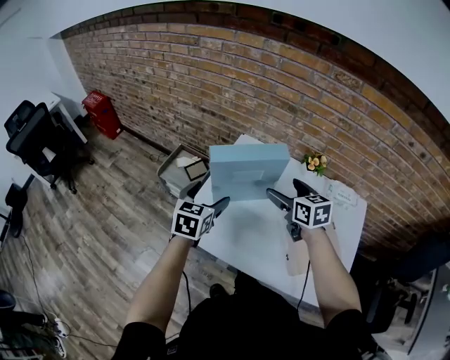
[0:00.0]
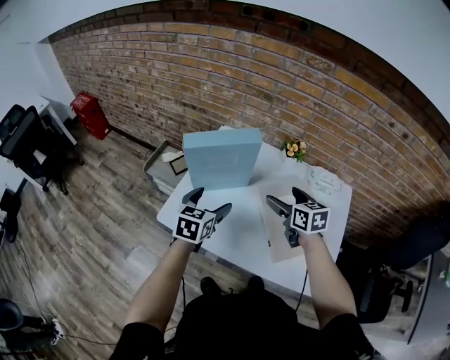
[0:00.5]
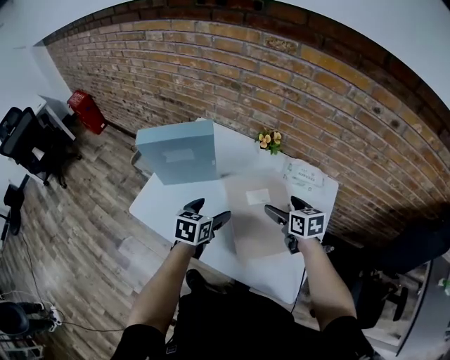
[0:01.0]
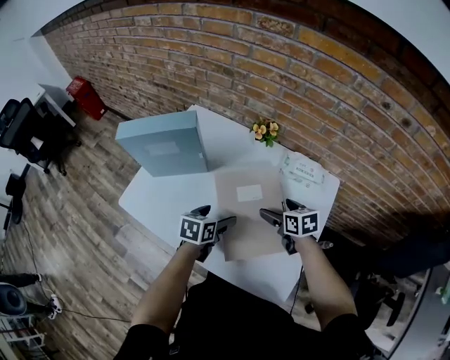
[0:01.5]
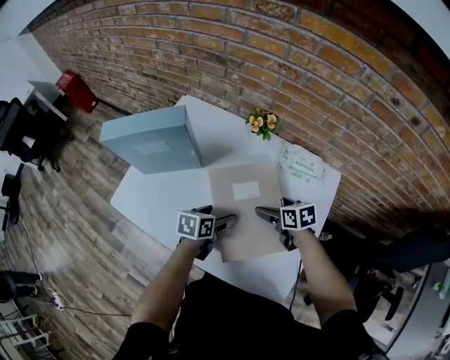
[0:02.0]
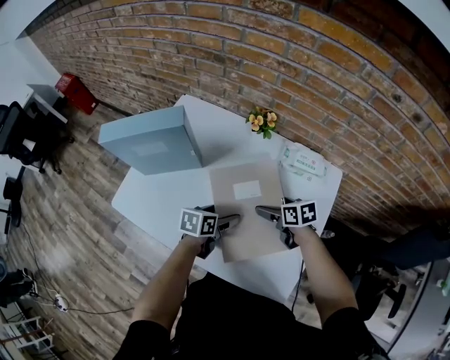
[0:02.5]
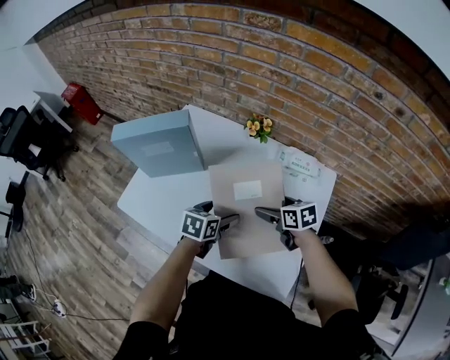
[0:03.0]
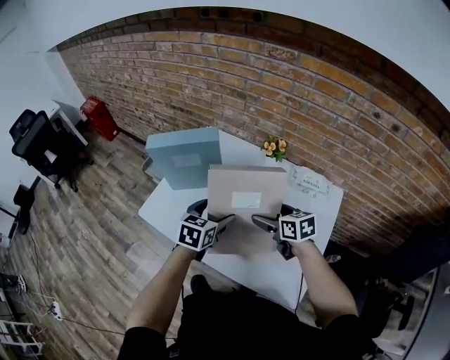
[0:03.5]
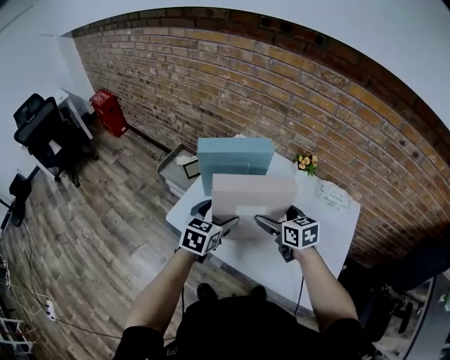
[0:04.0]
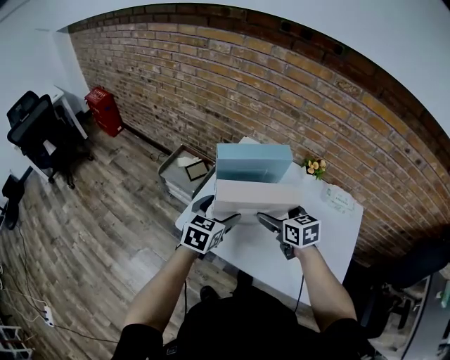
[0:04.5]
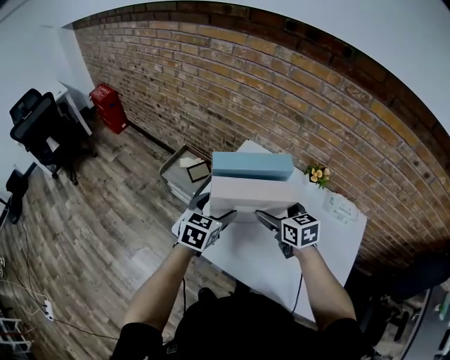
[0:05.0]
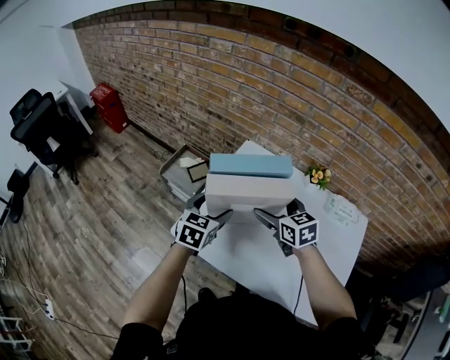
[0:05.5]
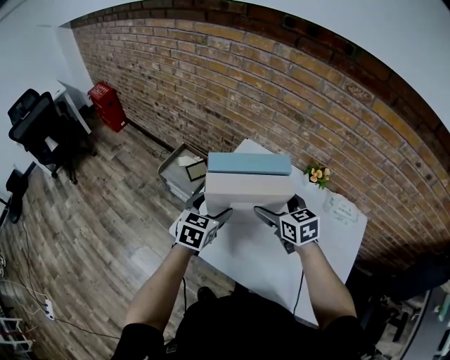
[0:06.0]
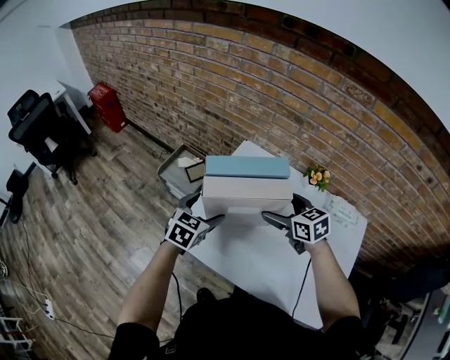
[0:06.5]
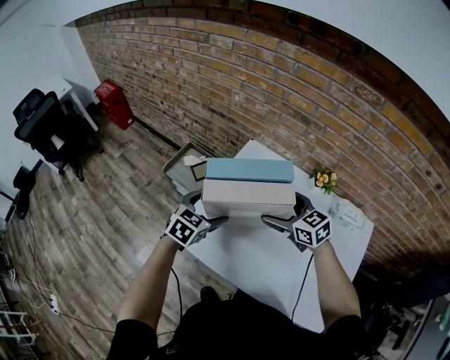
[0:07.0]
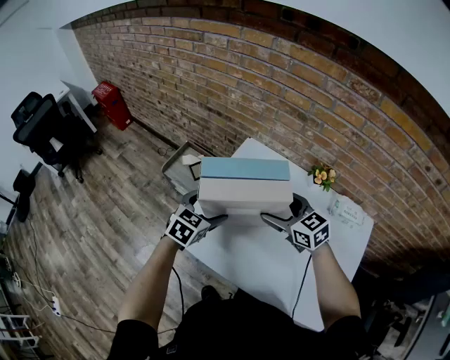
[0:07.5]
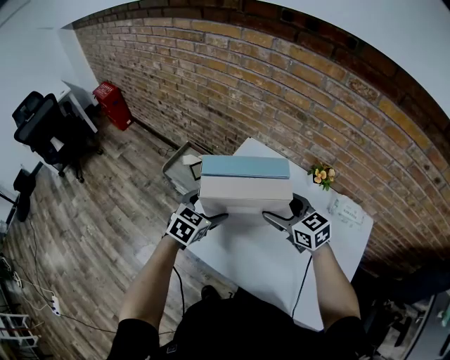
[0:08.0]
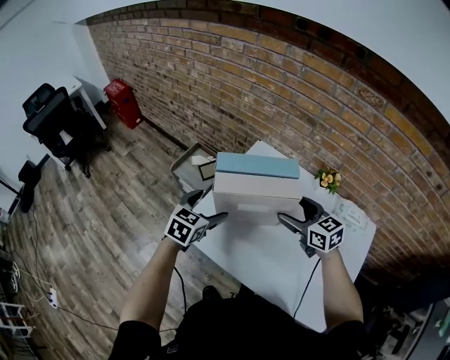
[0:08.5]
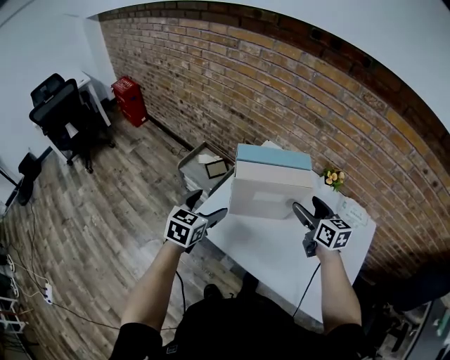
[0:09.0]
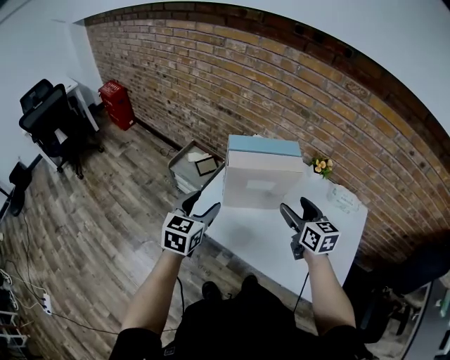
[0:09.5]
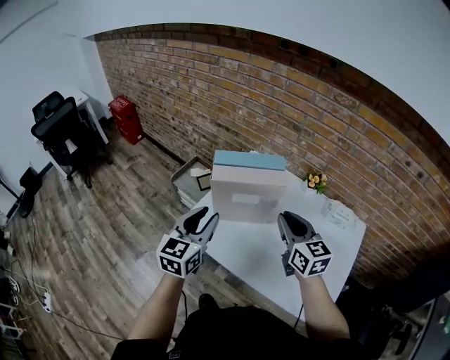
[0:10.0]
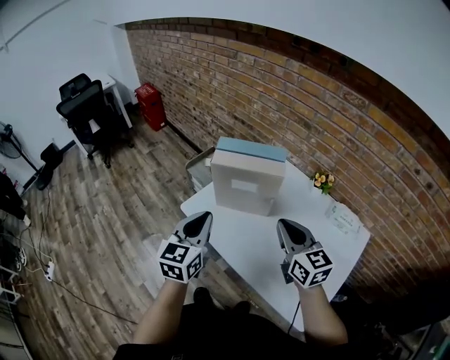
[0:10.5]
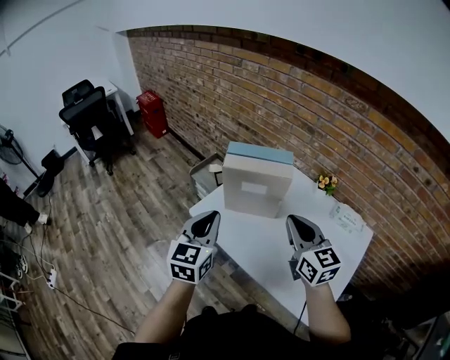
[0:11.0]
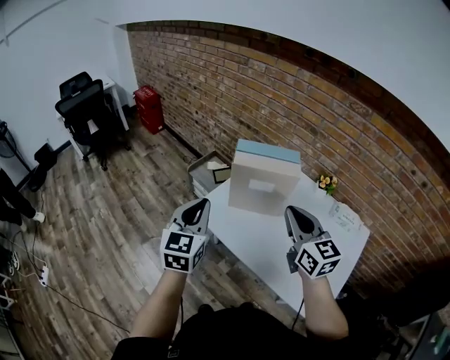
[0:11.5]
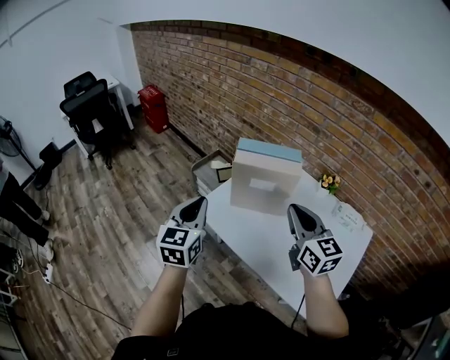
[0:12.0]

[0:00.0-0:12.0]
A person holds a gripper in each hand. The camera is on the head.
0:00.0 to 0:02.0: The grippers both shift to the right and downward by some 35 cm. The left gripper changes its angle by about 40 degrees. The right gripper rotates about 30 degrees.
0:02.0 to 0:04.0: The grippers both shift to the left and upward by some 25 cm. The right gripper rotates about 20 degrees. The left gripper swivels some 30 degrees.
0:04.0 to 0:06.0: The left gripper is displaced forward and to the left by some 10 cm. The right gripper goes roughly 10 cm forward.
0:06.0 to 0:08.0: There are only small adjustments of the grippers.
0:08.0 to 0:10.0: The left gripper heads upward and backward, covering roughly 20 cm, swivels roughly 30 degrees, and closes its fingers. Meanwhile the right gripper goes roughly 15 cm backward and upward, changes its angle by roughly 20 degrees, and closes its fingers.
0:10.0 to 0:12.0: The left gripper shifts roughly 10 cm to the left and backward; the right gripper moves upward, about 5 cm.

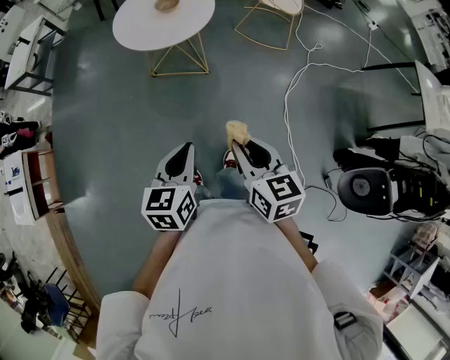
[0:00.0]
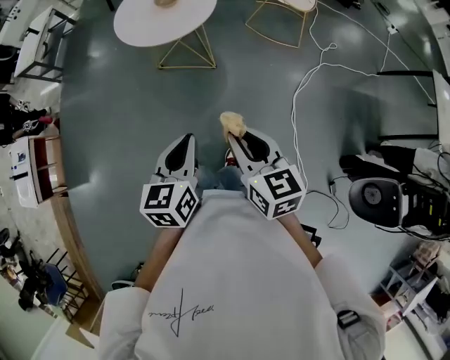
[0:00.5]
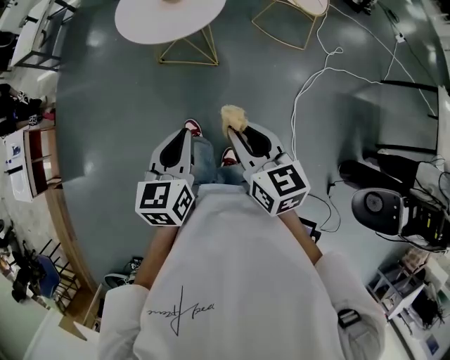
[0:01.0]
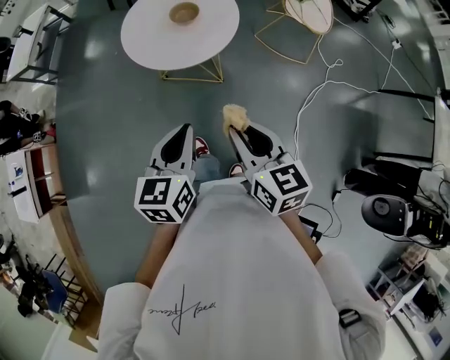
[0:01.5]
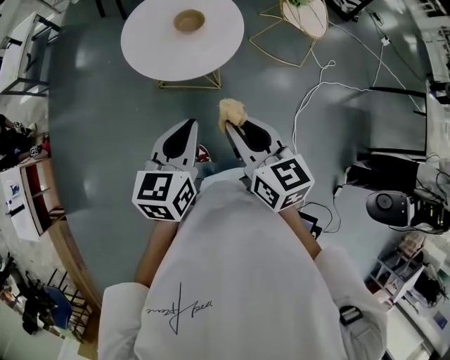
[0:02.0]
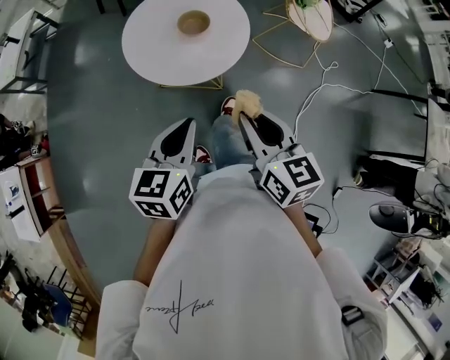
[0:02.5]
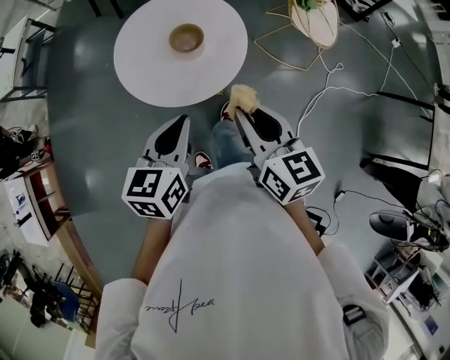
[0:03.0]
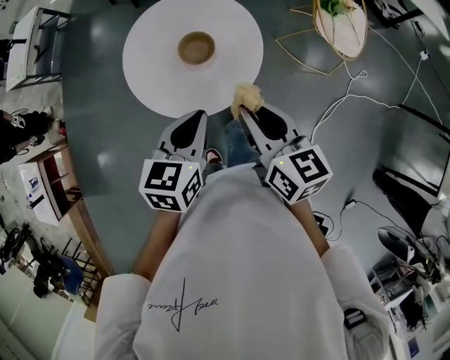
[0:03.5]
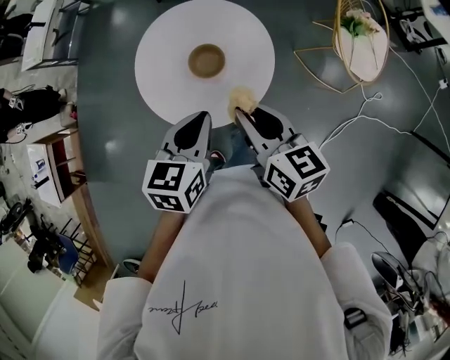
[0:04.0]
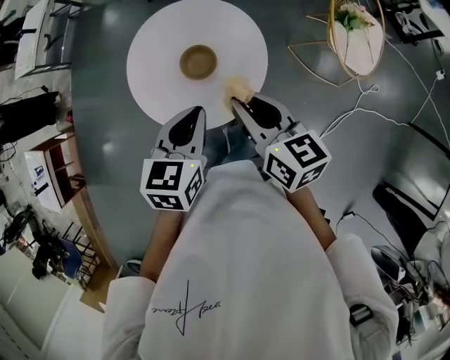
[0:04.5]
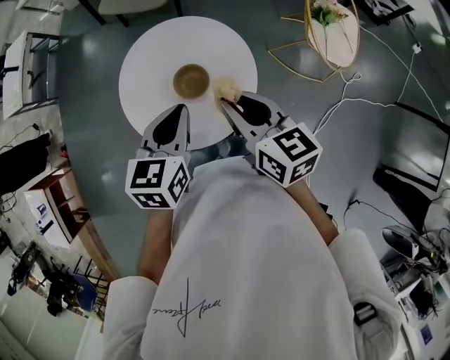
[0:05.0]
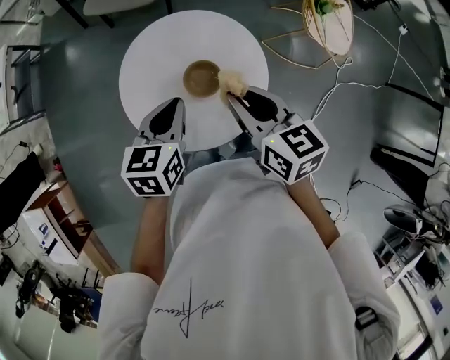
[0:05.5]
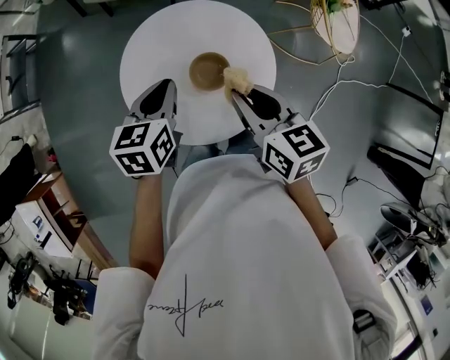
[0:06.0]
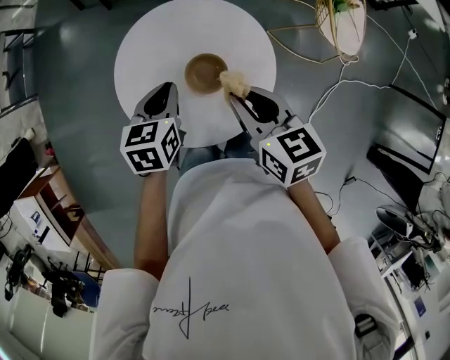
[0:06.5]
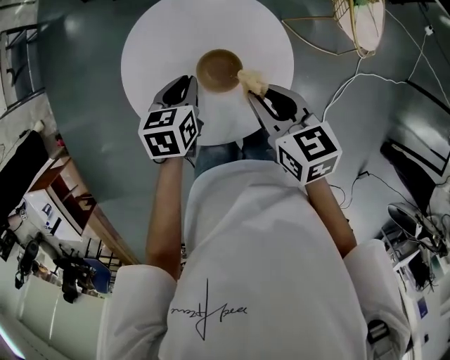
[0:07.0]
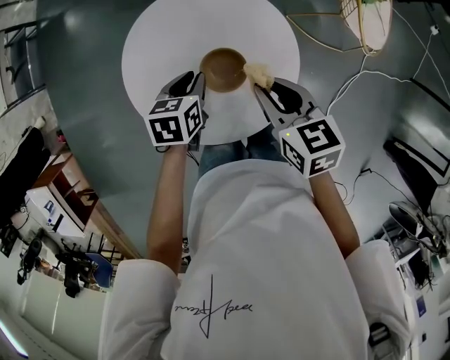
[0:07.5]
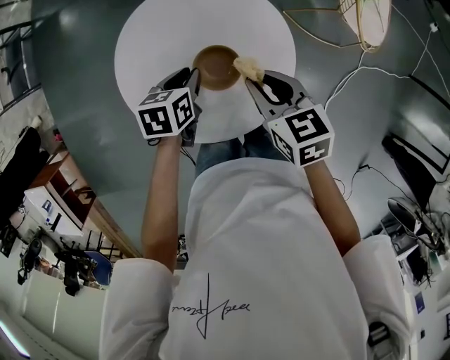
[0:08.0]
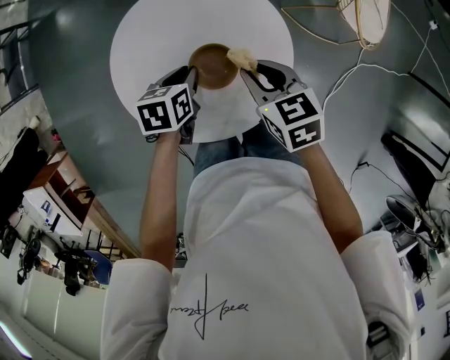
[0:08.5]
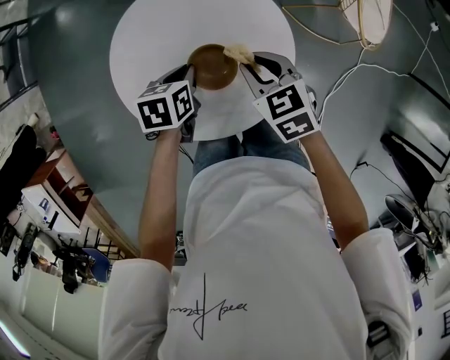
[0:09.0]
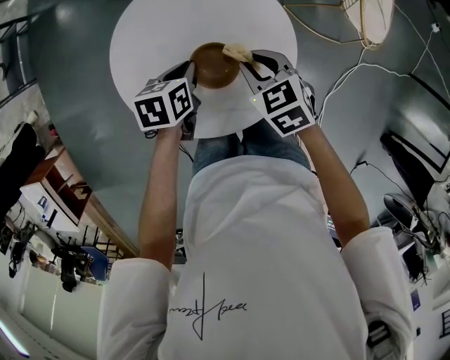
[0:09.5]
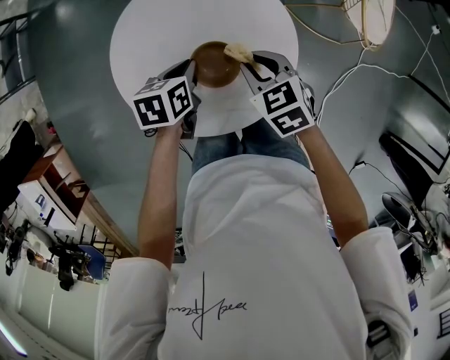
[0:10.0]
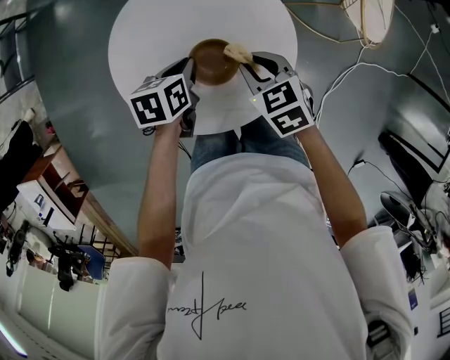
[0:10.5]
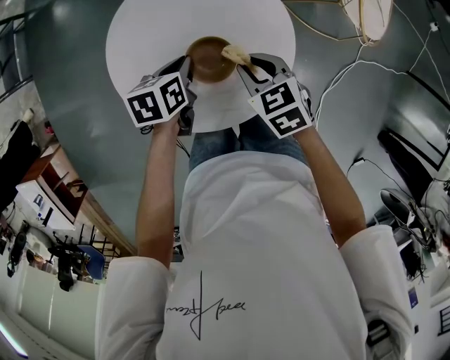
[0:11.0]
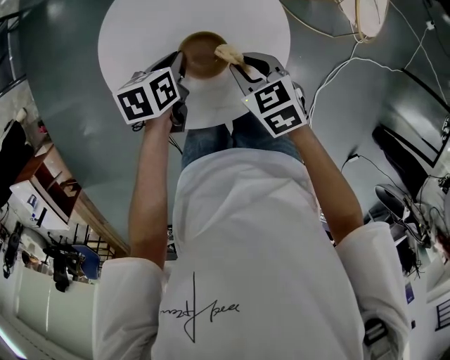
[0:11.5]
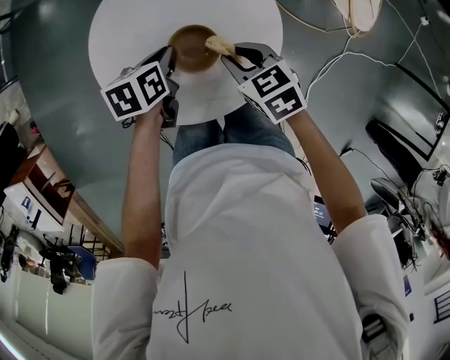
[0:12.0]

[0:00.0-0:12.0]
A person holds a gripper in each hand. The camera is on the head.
0:00.0 to 0:02.0: Both grippers travel together forward, roughly 25 cm.
0:02.0 to 0:04.0: Both grippers travel together forward, about 25 cm.
0:04.0 to 0:06.0: The left gripper heads forward, to the left and downward, covering approximately 20 cm. Meanwhile the right gripper travels forward and to the left by some 10 cm.
0:06.0 to 0:08.0: Both grippers travel together downward, roughly 15 cm. The left gripper changes its angle by about 20 degrees.
0:08.0 to 0:10.0: The right gripper heads downward, covering about 5 cm, and turns by roughly 20 degrees.
0:10.0 to 0:12.0: The grippers move only a little.

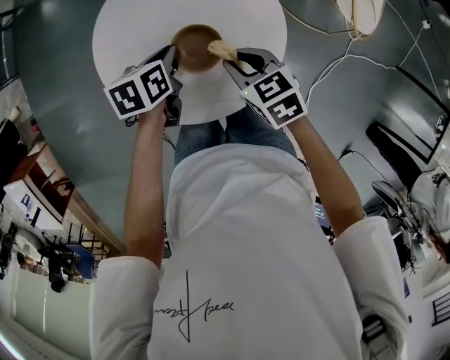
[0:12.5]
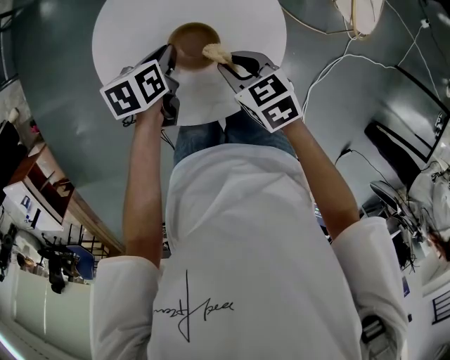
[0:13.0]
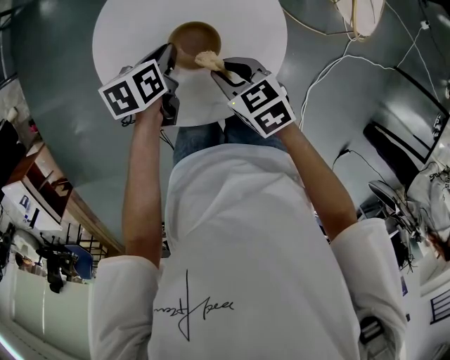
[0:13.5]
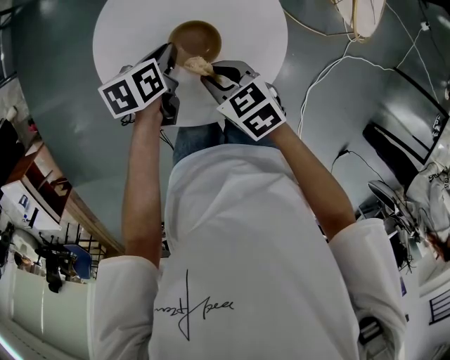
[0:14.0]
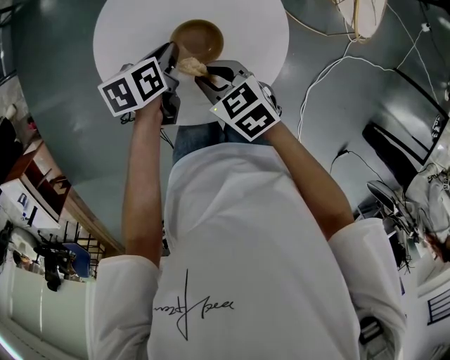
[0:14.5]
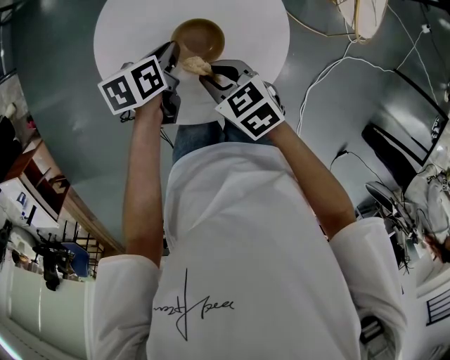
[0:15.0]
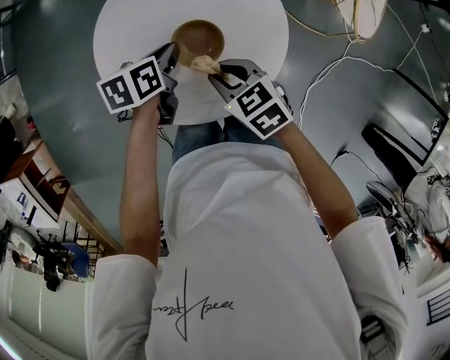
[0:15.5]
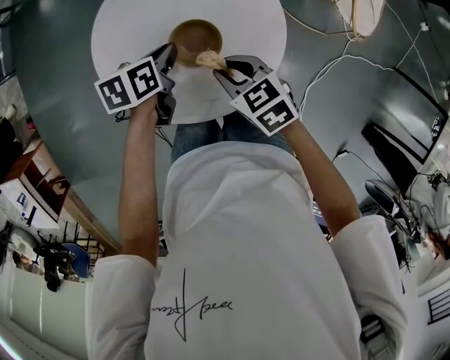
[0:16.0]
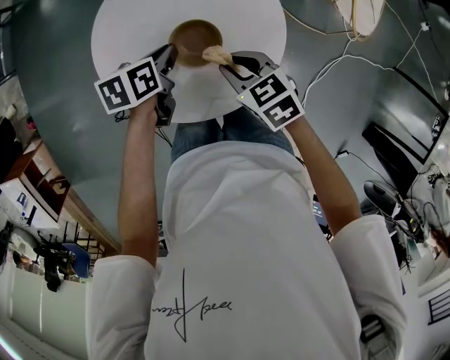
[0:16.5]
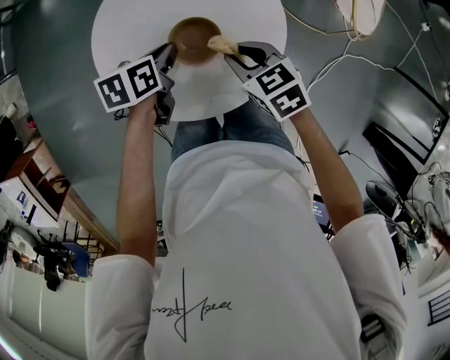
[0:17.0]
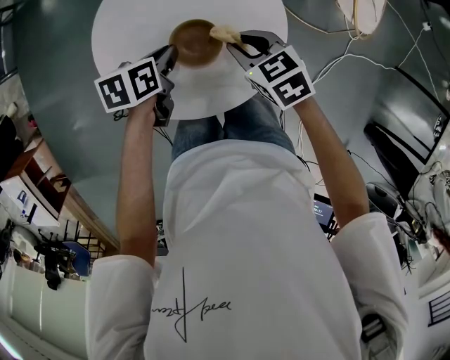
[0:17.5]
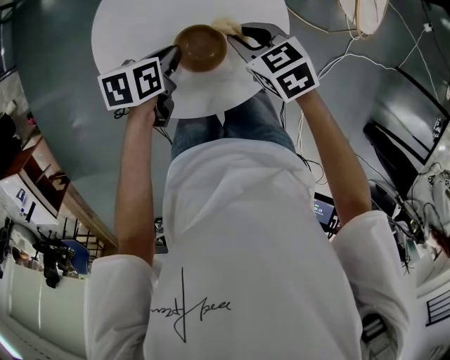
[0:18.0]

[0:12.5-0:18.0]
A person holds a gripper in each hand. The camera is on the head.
0:12.5 to 0:14.5: The right gripper shifts approximately 5 cm to the left.
0:14.5 to 0:16.0: The grippers make only small movements.
0:16.0 to 0:18.0: The right gripper travels forward by roughly 5 cm.
